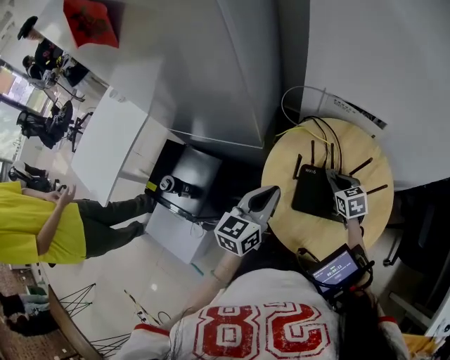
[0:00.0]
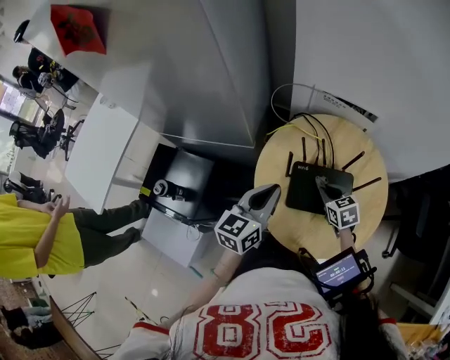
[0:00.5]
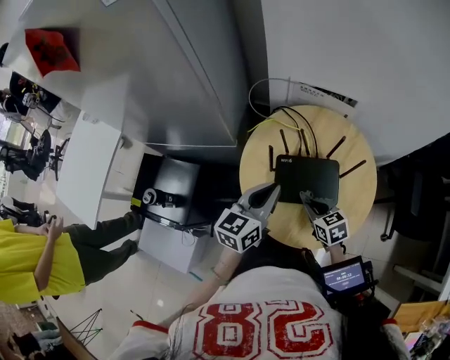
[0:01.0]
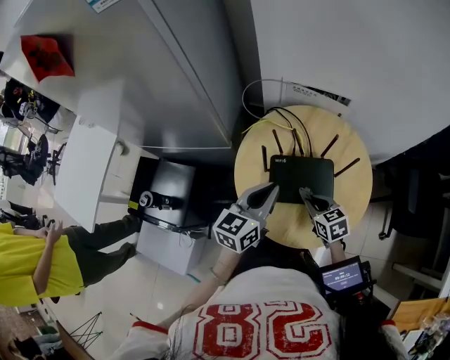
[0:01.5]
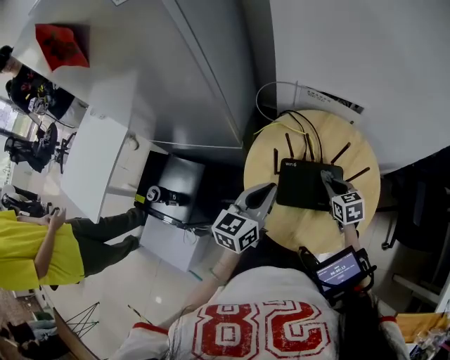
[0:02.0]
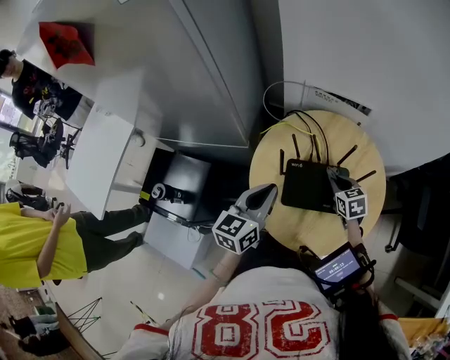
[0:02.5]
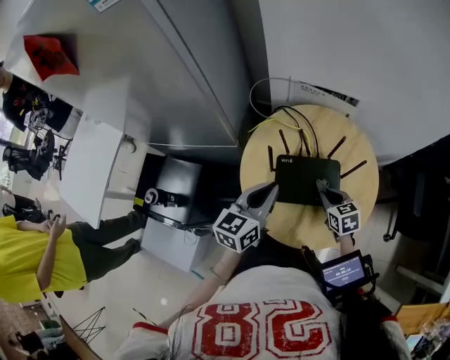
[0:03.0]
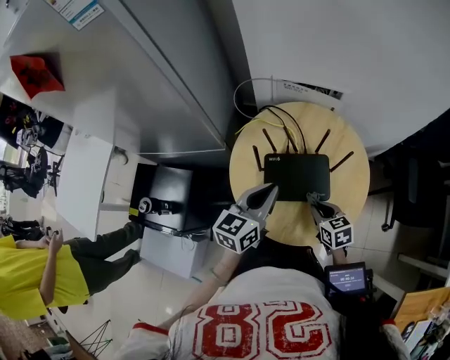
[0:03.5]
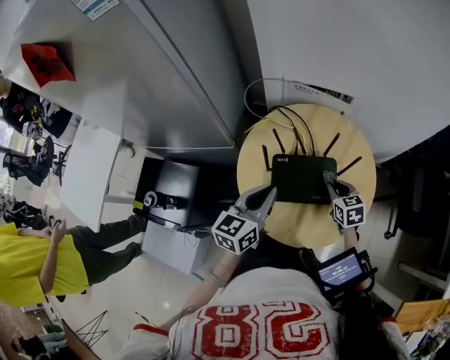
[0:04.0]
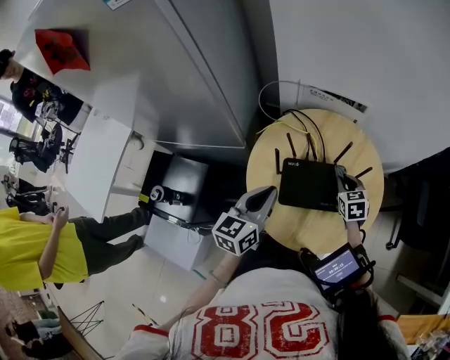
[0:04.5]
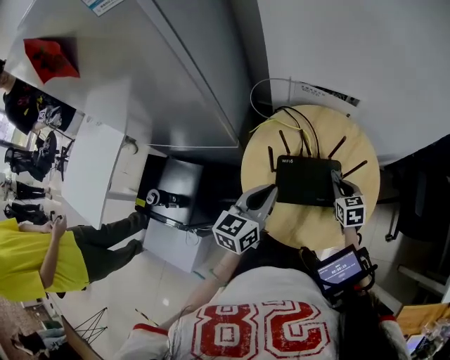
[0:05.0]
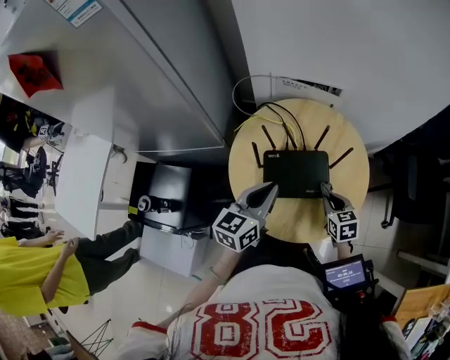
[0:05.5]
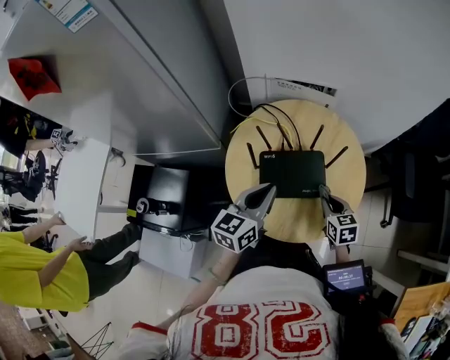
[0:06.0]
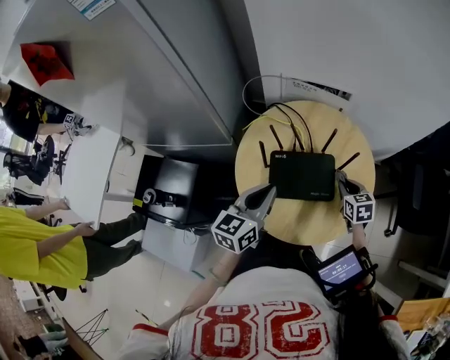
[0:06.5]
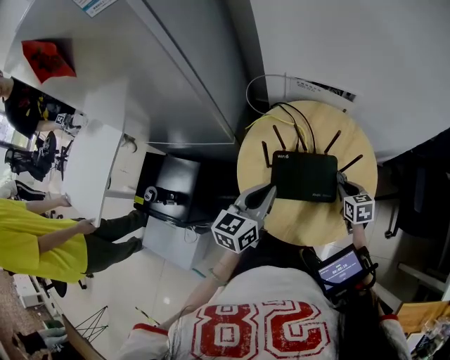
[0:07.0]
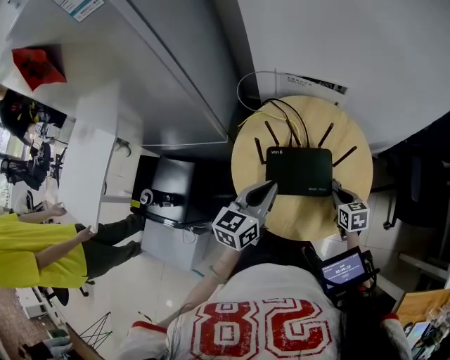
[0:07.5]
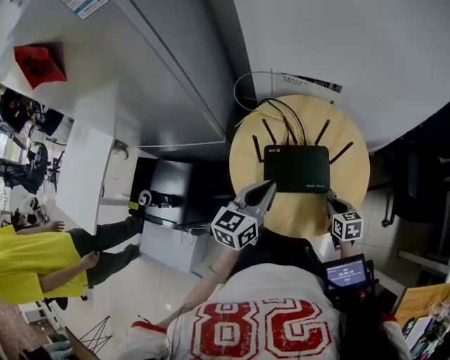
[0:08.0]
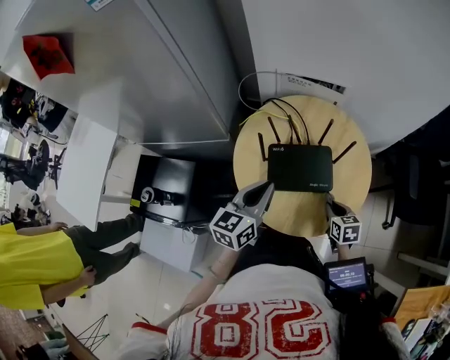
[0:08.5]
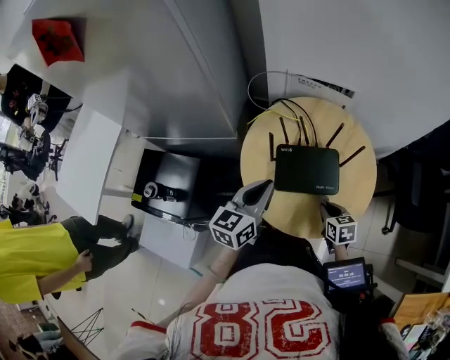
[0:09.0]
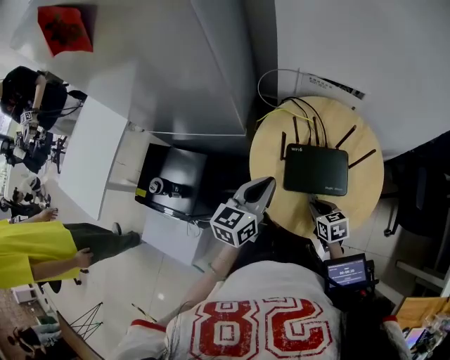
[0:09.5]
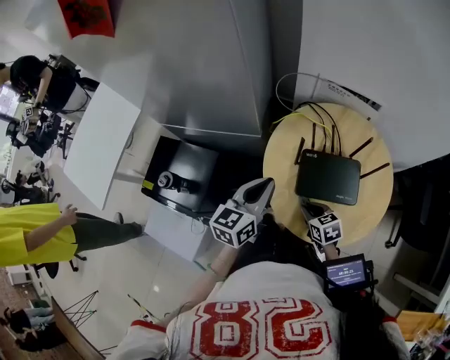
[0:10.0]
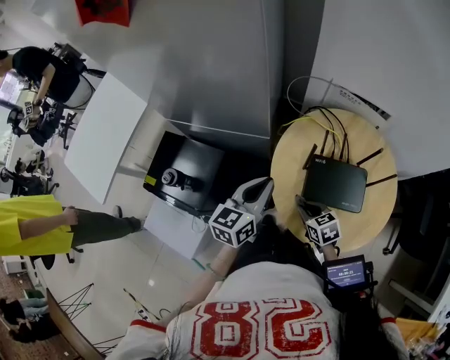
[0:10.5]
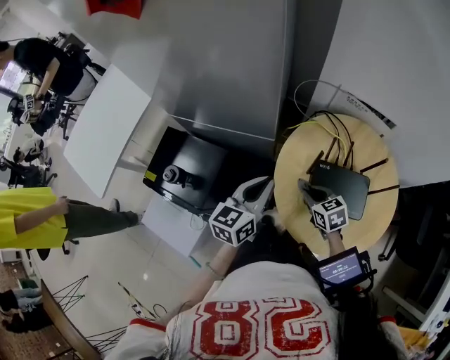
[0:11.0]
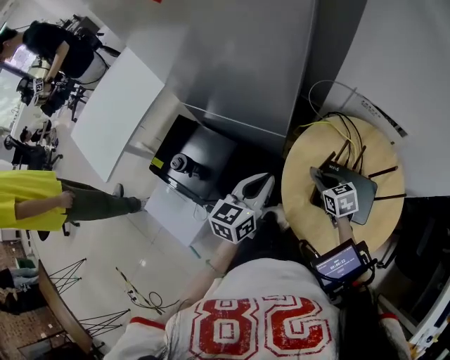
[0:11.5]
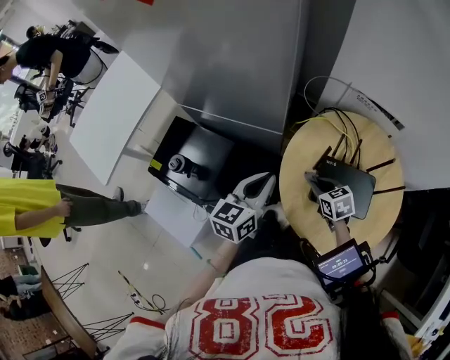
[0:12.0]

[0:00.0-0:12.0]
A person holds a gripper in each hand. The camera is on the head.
0:00.0 to 0:02.0: The right gripper travels backward and back again, some 15 cm each way.
0:02.0 to 0:04.0: The right gripper travels backward and back again, roughly 10 cm each way.
0:04.0 to 0:06.0: The right gripper travels backward by about 10 cm.
0:06.0 to 0:08.0: The right gripper reaches approximately 10 cm forward, then returns.
0:08.0 to 0:10.0: The right gripper shifts about 20 cm to the left, and turns by some 20 degrees, while the left gripper shifts approximately 10 cm to the left.
0:10.0 to 0:12.0: The right gripper goes roughly 10 cm forward, while the left gripper goes about 5 cm to the left.

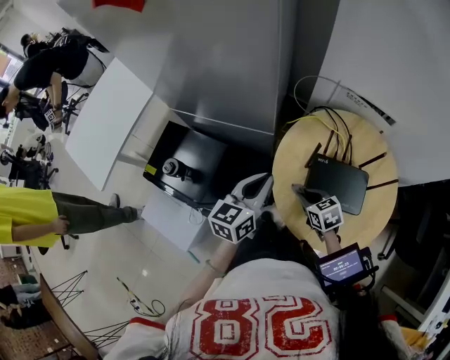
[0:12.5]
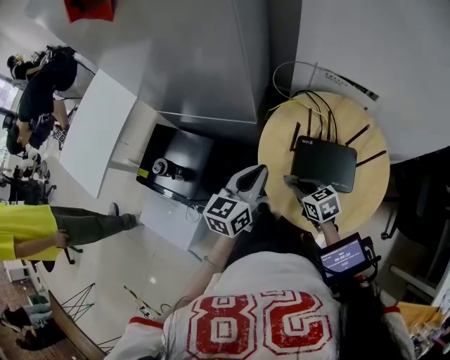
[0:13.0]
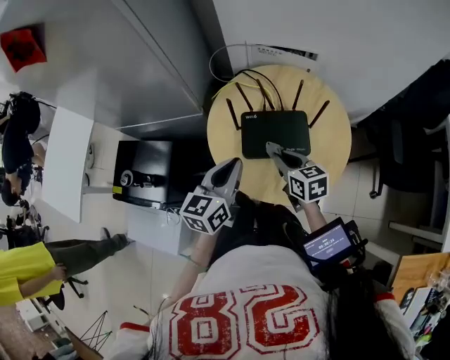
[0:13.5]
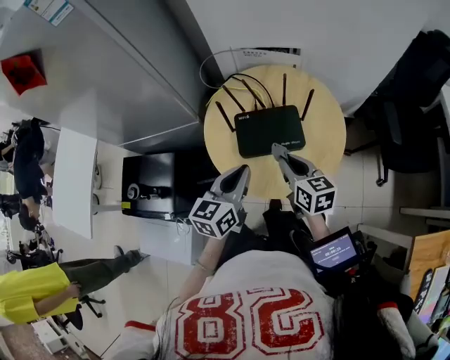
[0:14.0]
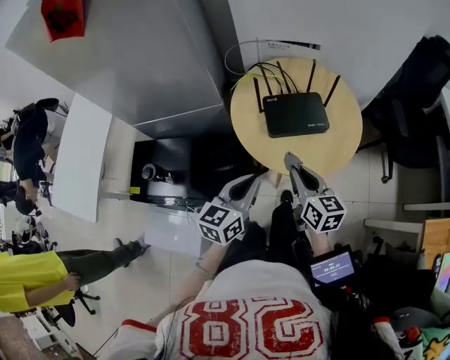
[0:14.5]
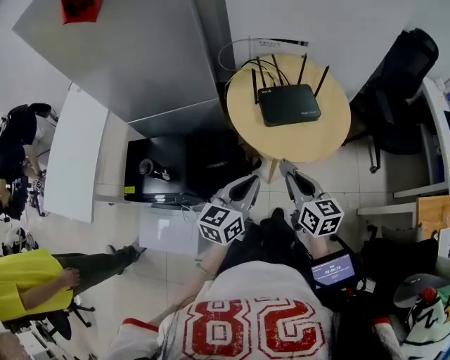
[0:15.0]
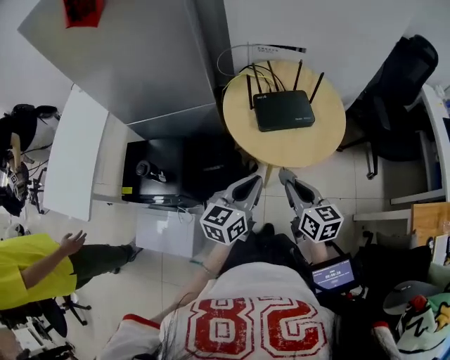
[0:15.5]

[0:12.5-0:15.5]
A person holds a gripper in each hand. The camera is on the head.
0:12.5 to 0:14.0: The left gripper moves about 15 cm, while the right gripper shifts by some 20 cm, and changes its angle by some 50 degrees.
0:14.0 to 0:15.5: Both grippers travel together backward, approximately 20 cm.

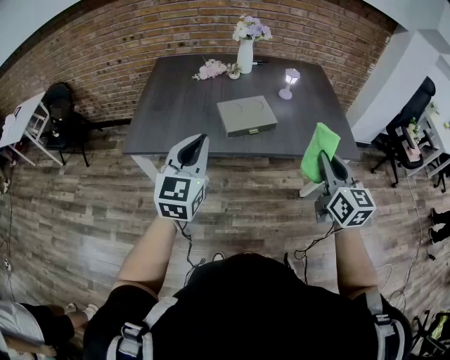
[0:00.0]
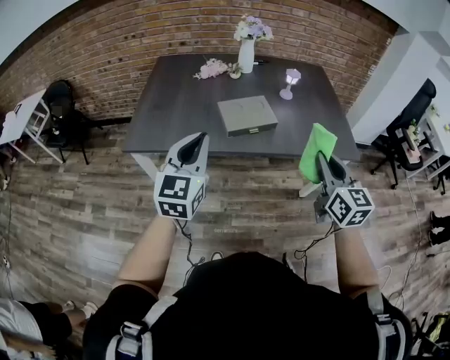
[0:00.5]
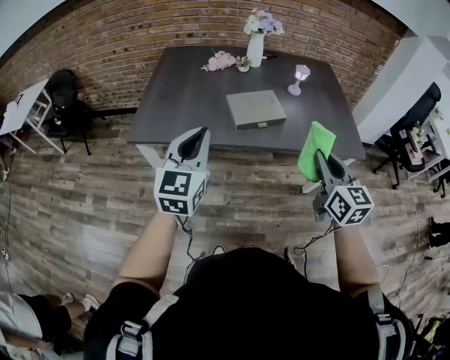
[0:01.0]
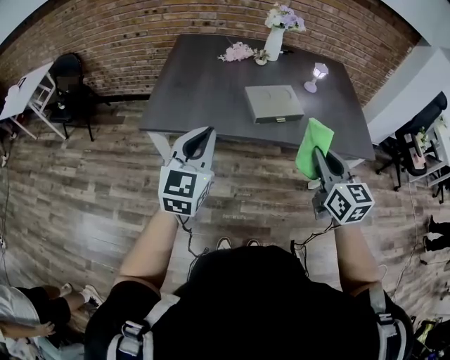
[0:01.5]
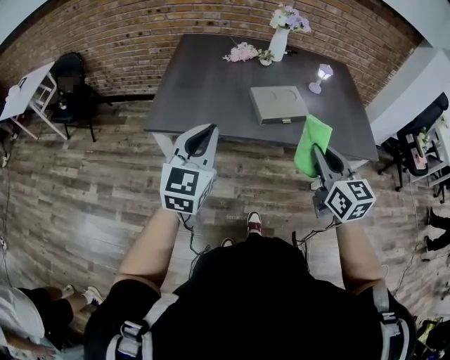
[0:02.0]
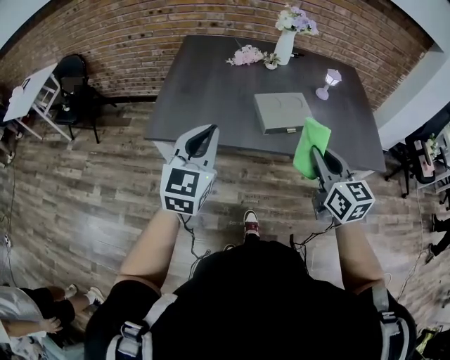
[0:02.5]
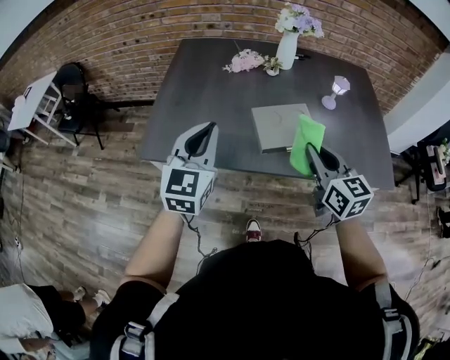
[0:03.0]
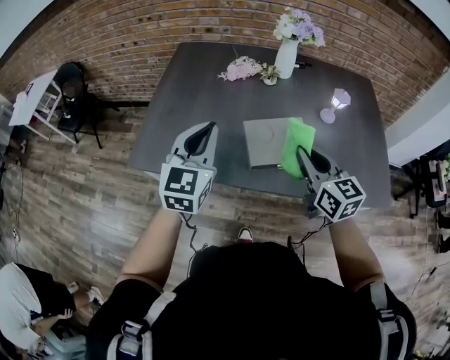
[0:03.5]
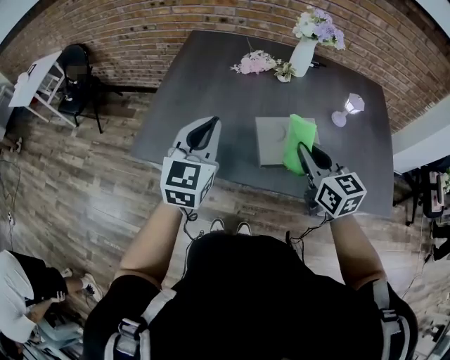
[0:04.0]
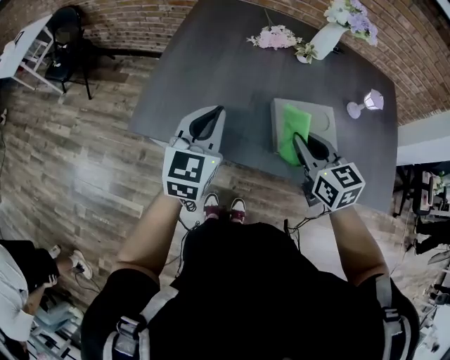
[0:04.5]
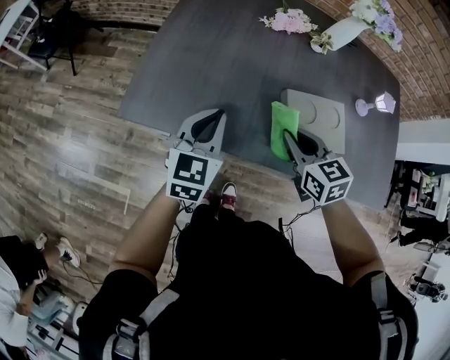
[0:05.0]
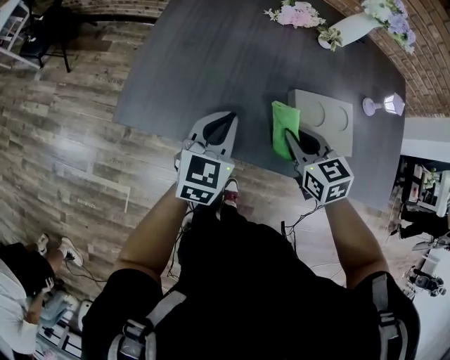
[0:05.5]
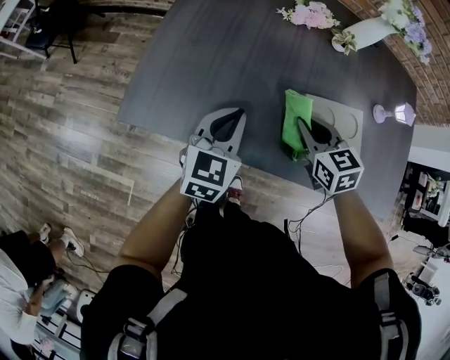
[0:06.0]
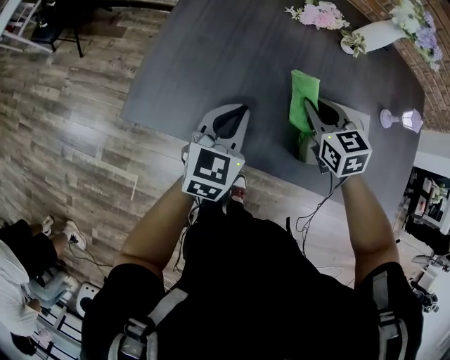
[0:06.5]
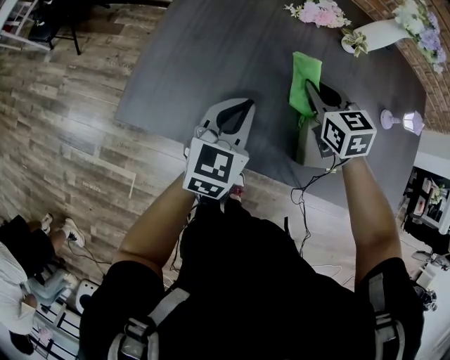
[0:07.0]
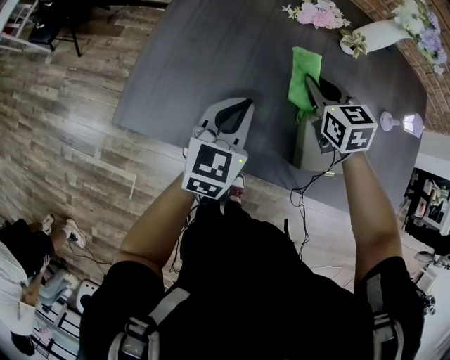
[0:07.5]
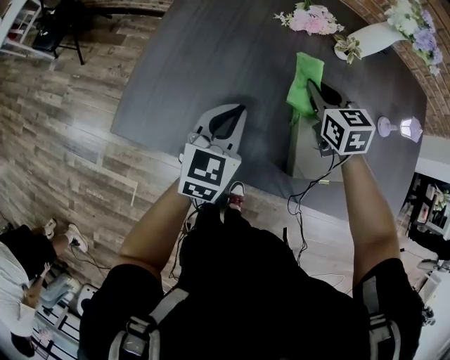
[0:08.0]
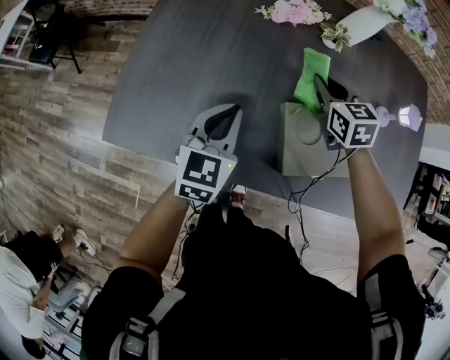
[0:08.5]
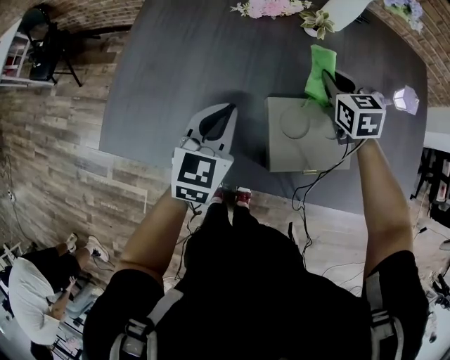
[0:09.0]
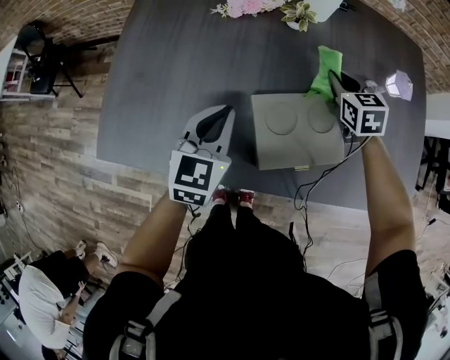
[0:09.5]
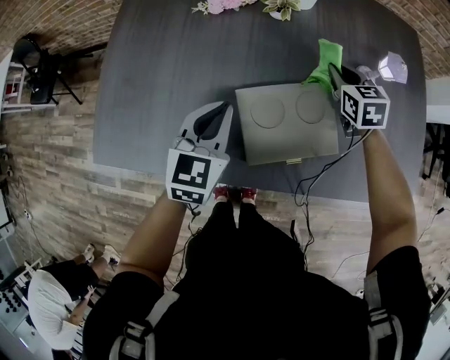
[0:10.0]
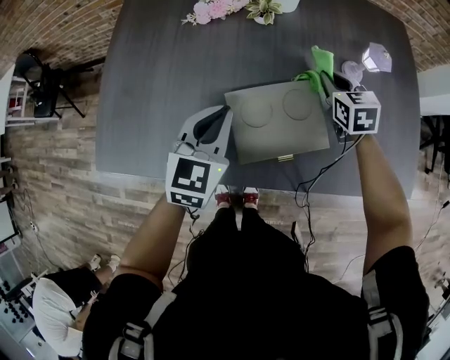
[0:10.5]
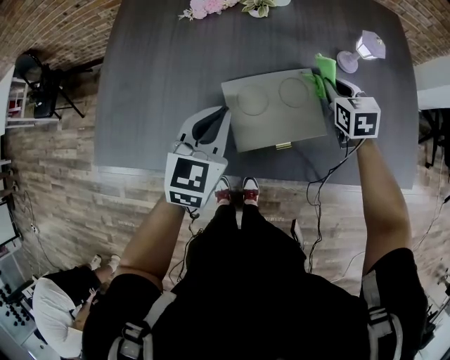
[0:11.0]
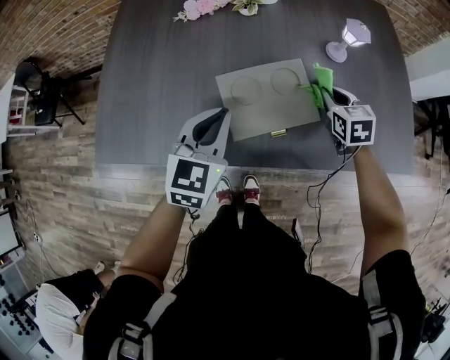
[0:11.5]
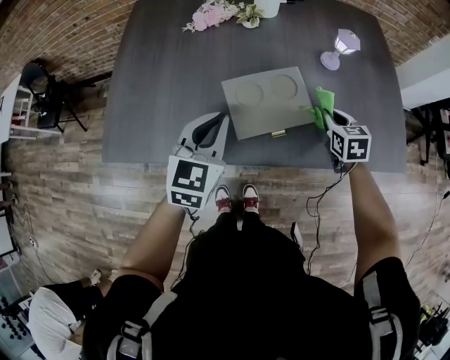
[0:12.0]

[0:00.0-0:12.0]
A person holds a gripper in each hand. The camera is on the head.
0:00.0 to 0:02.0: The two grippers go some 15 cm to the left.
0:02.0 to 0:04.0: Both grippers move forward, approximately 25 cm.
0:04.0 to 0:06.0: The left gripper goes approximately 20 cm downward, while the right gripper moves downward, to the left and forward, about 20 cm, and turns by approximately 30 degrees.
0:06.0 to 0:08.0: The right gripper goes about 15 cm forward. The left gripper changes place by some 5 cm.
0:08.0 to 0:10.0: The left gripper goes roughly 15 cm to the right. The right gripper goes approximately 25 cm to the right.
0:10.0 to 0:12.0: The right gripper is displaced backward and to the right by some 20 cm; the left gripper shifts about 10 cm backward and upward.
